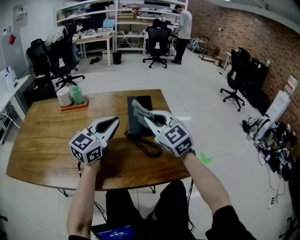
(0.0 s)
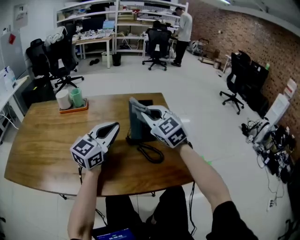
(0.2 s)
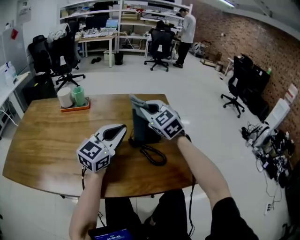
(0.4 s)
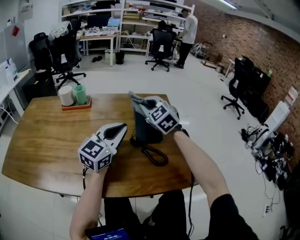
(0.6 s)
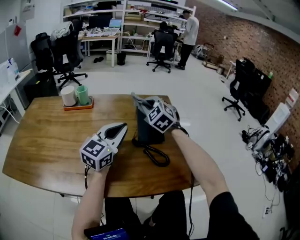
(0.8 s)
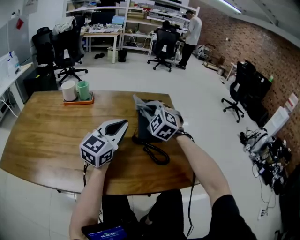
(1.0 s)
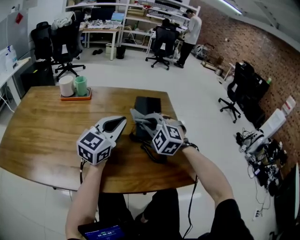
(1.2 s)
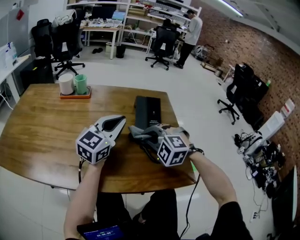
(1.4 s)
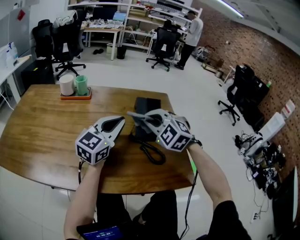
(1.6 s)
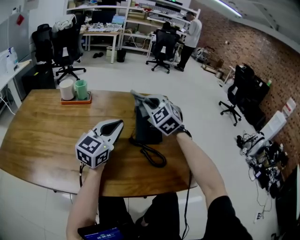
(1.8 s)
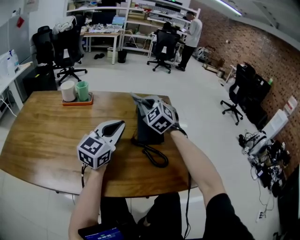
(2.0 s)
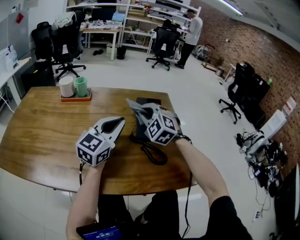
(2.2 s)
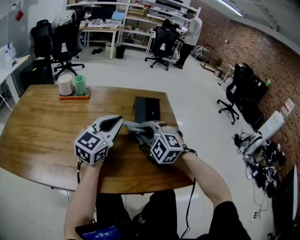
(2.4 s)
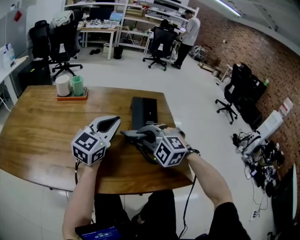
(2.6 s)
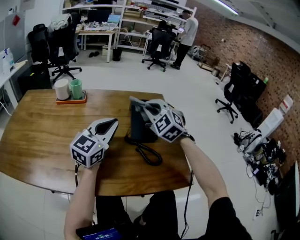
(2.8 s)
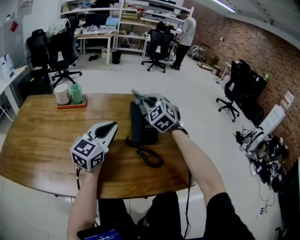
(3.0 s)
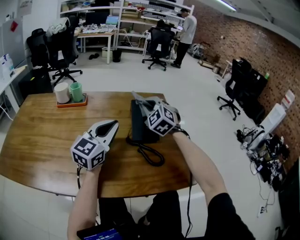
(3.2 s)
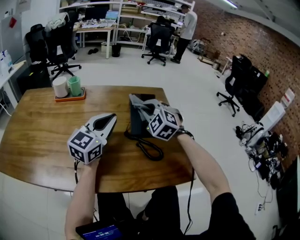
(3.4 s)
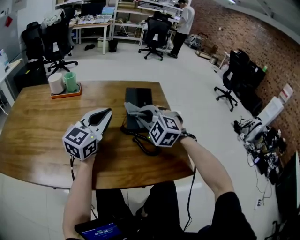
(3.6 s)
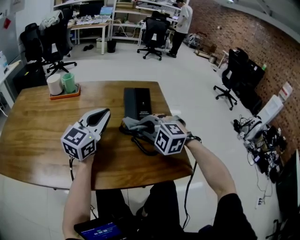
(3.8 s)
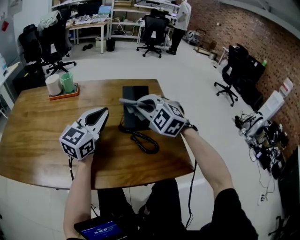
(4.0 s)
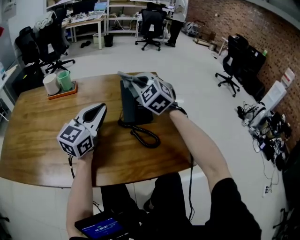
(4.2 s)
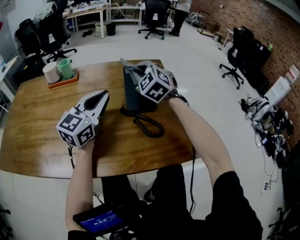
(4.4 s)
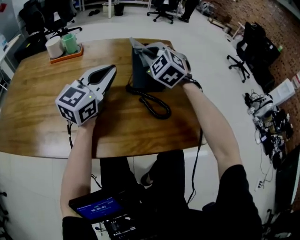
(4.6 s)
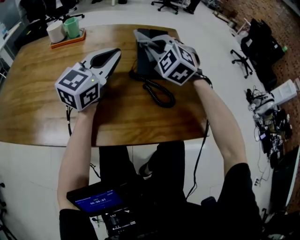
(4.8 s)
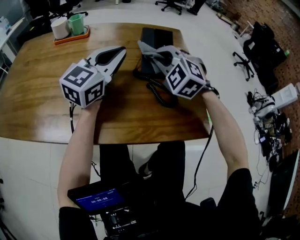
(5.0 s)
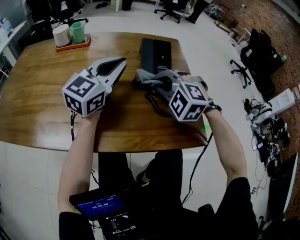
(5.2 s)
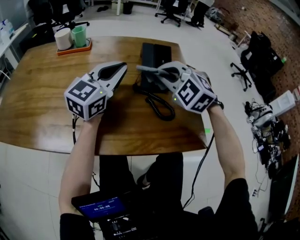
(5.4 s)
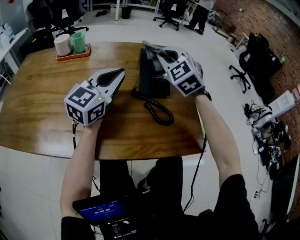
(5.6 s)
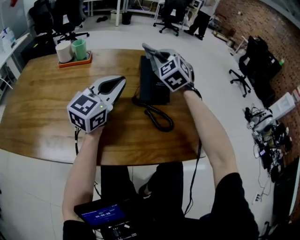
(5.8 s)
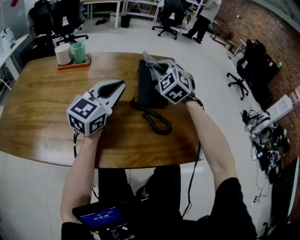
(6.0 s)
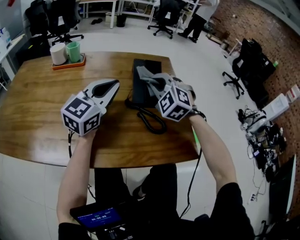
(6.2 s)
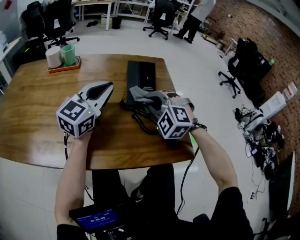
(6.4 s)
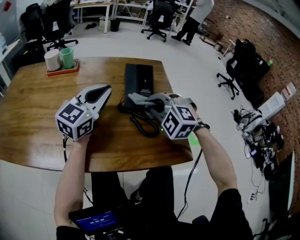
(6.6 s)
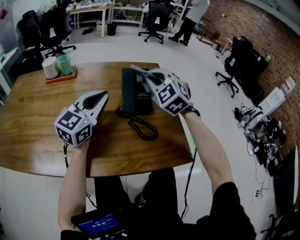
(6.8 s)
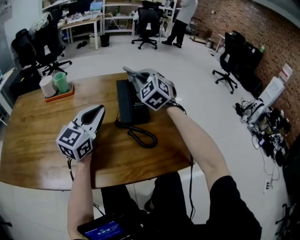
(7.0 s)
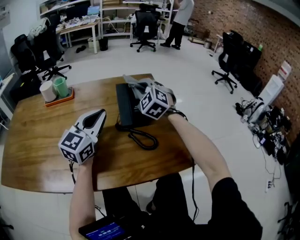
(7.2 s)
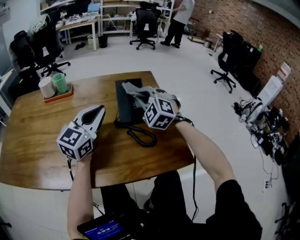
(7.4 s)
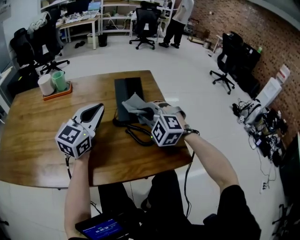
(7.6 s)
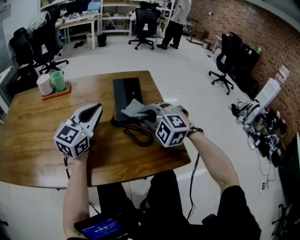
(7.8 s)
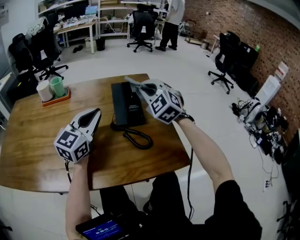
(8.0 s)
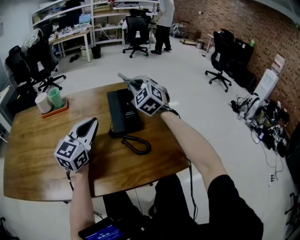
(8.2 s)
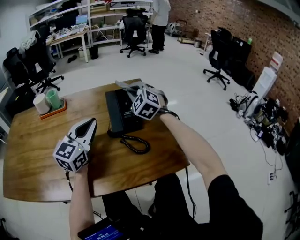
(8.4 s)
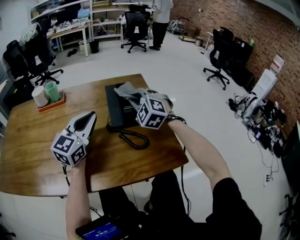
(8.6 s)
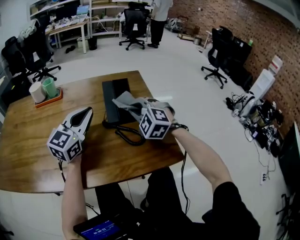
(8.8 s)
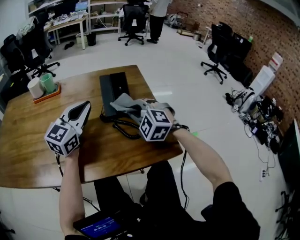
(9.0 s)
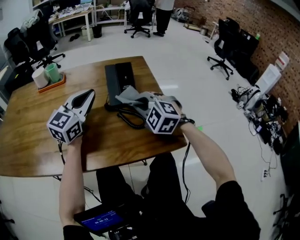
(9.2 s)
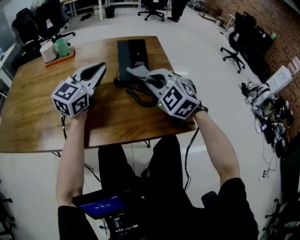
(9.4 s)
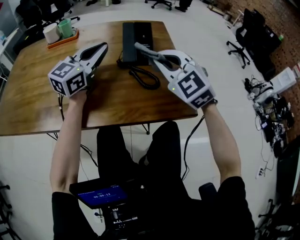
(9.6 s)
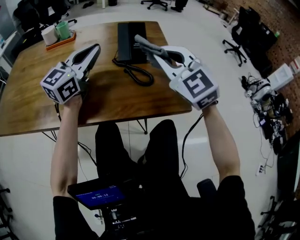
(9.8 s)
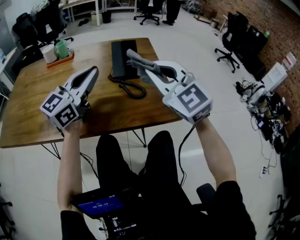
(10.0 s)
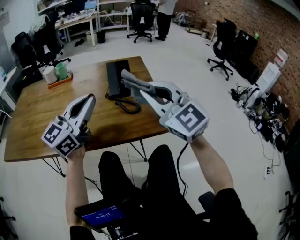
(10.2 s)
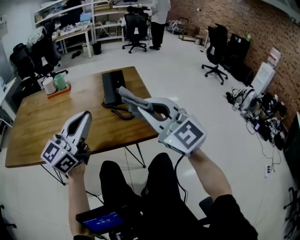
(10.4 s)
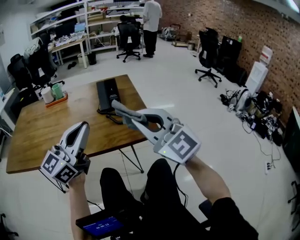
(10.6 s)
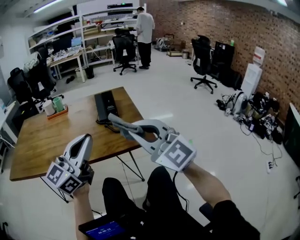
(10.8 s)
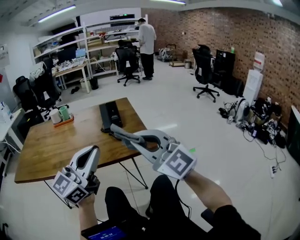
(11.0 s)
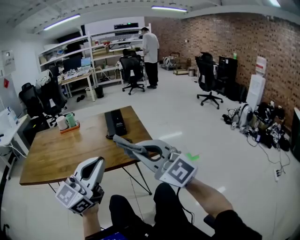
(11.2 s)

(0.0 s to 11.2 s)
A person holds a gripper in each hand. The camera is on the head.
0.0 s - 1.6 s: The right gripper swings forward and backward, about 15 cm each way, with 2 reversals, and changes its angle by approximately 40 degrees.
1.6 s - 3.2 s: The right gripper swings forward and backward, approximately 20 cm each way, with 2 reversals.
3.2 s - 4.8 s: The right gripper goes forward and backward, about 15 cm each way, reversing 2 times.
4.8 s - 6.4 s: The right gripper goes forward and backward, about 15 cm each way, reversing 2 times.
6.4 s - 8.0 s: The right gripper swings forward and backward, some 15 cm each way, with 2 reversals, and turns by approximately 30 degrees.
8.0 s - 9.6 s: The right gripper travels backward by roughly 15 cm.
9.6 s - 11.2 s: The left gripper heads backward, covering approximately 40 cm, and turns by approximately 20 degrees; the right gripper travels backward and upward by some 35 cm, and changes its angle by about 30 degrees.

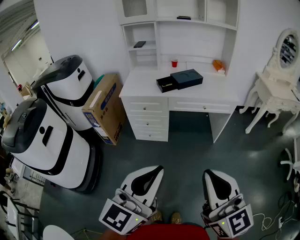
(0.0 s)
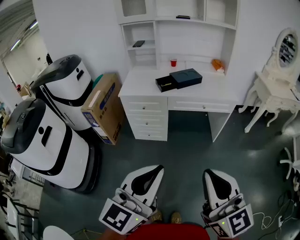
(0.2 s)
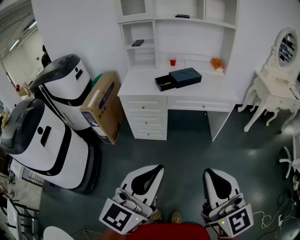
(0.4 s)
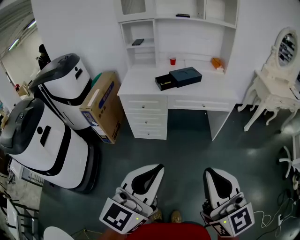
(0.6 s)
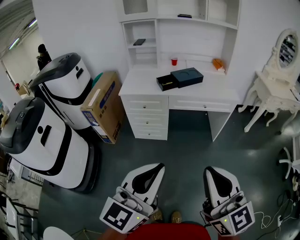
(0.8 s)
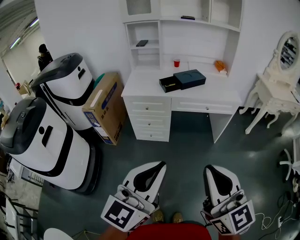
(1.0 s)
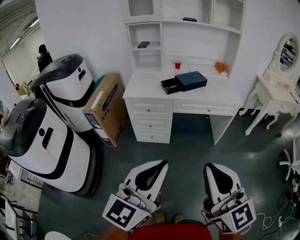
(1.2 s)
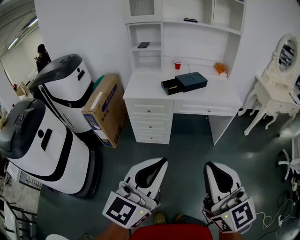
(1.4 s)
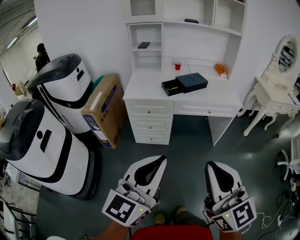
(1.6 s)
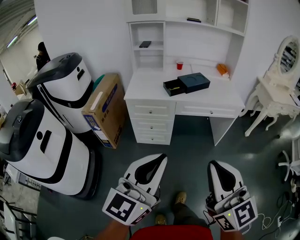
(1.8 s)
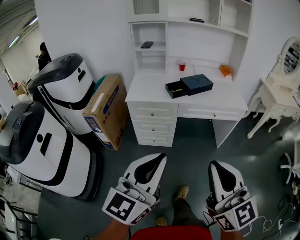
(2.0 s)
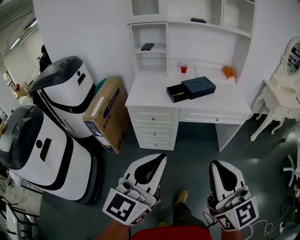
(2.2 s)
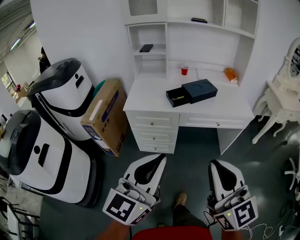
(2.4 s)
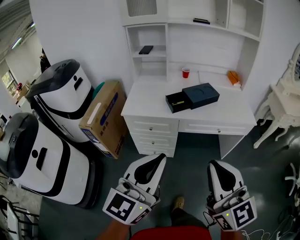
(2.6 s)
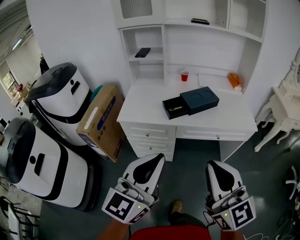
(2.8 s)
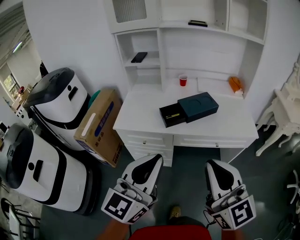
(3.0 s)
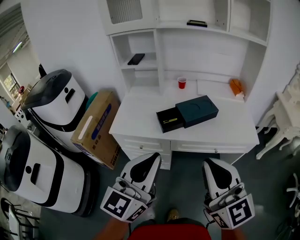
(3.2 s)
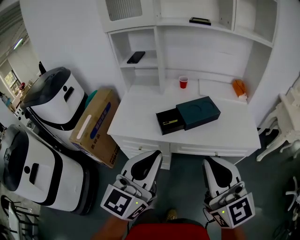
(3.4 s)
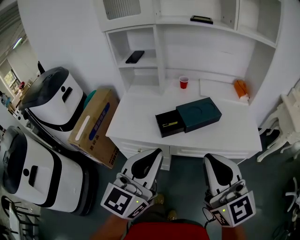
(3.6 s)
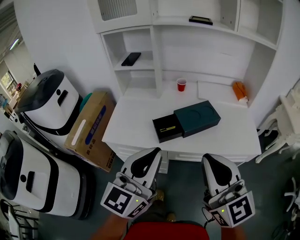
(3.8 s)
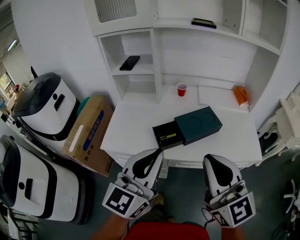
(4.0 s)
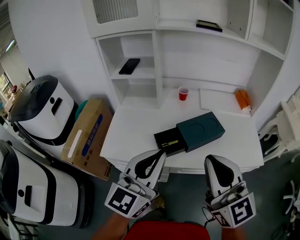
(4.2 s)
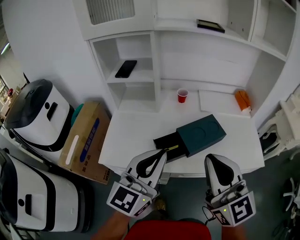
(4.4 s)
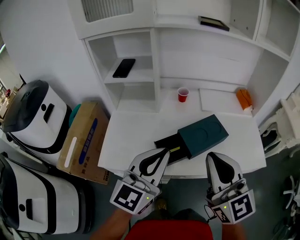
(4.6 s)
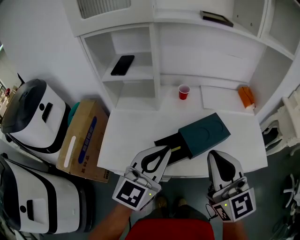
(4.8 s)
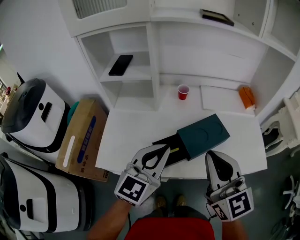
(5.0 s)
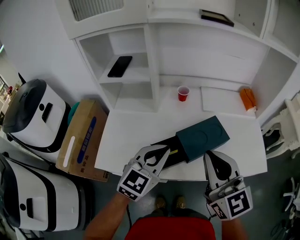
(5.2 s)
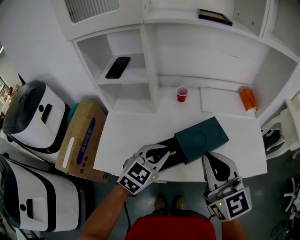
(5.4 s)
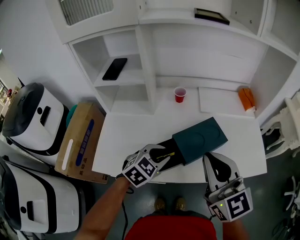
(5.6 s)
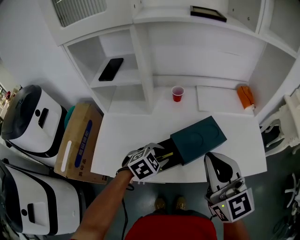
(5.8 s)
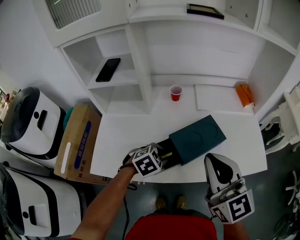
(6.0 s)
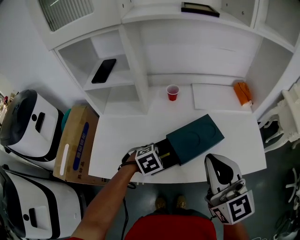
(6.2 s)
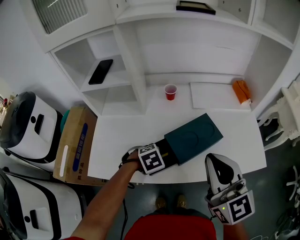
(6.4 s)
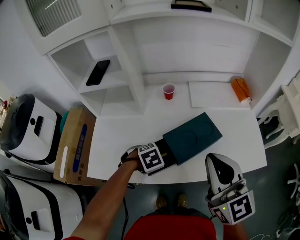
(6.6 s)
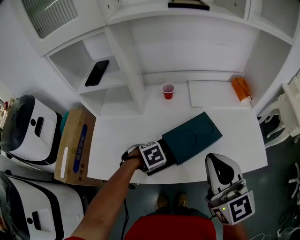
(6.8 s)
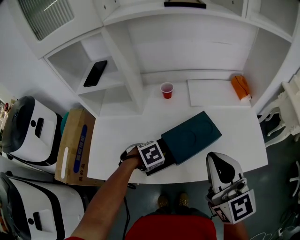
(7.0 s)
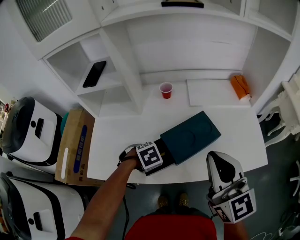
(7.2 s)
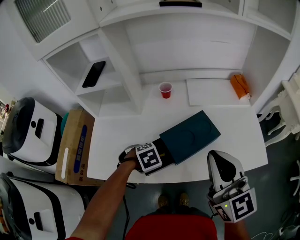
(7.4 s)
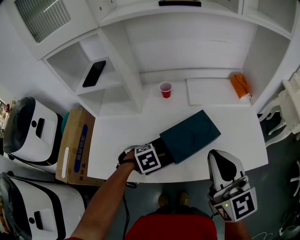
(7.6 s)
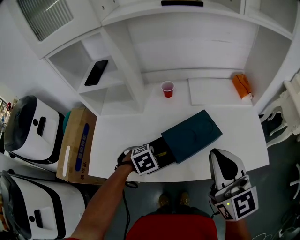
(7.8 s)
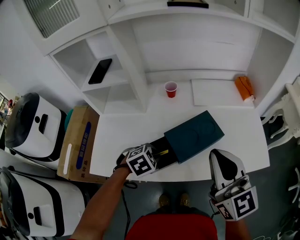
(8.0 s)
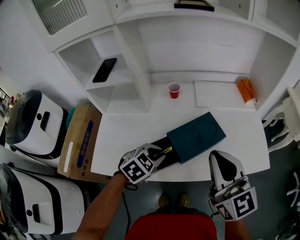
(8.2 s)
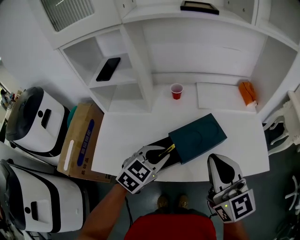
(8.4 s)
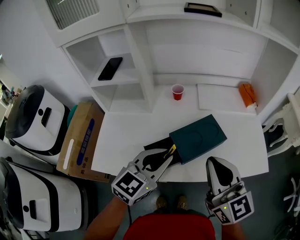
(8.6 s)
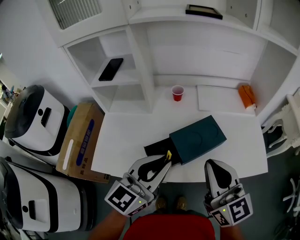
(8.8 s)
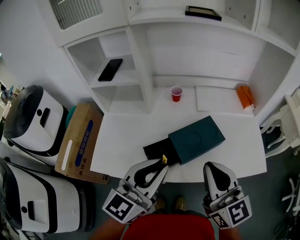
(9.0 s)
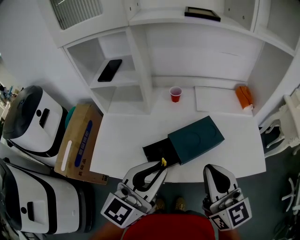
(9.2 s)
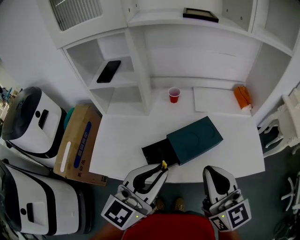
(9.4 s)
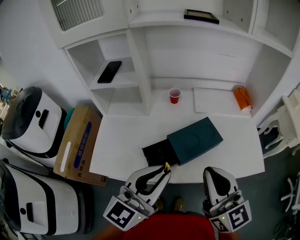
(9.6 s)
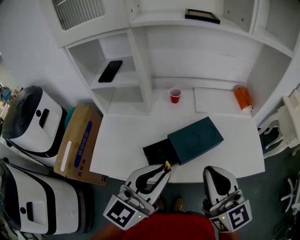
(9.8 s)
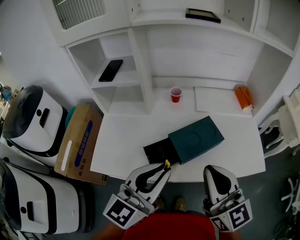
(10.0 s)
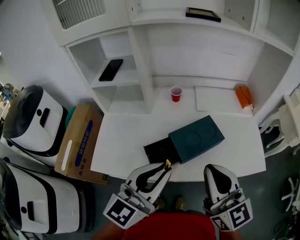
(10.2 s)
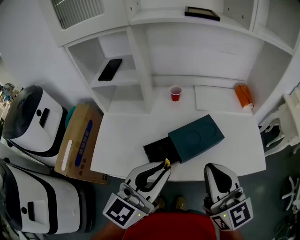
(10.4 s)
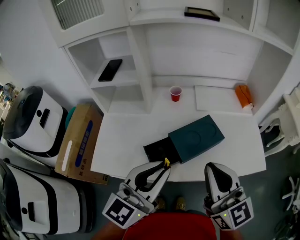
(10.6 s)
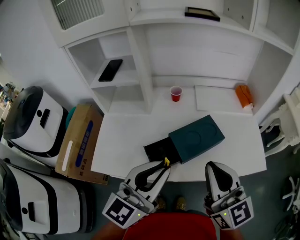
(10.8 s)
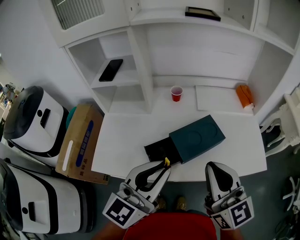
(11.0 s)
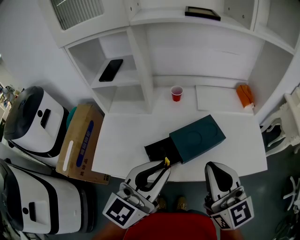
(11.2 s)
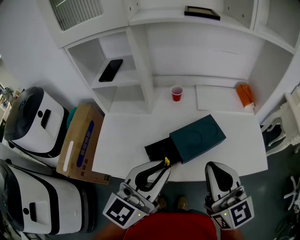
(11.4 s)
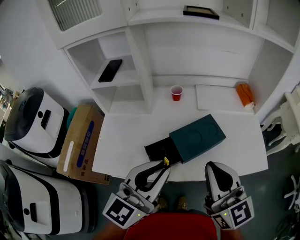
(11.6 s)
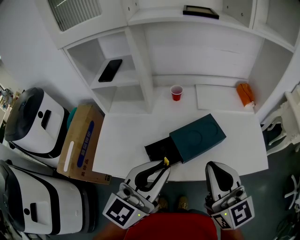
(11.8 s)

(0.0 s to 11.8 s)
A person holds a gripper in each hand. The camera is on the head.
0.0 s - 1.4 s: The grippers both shift to the left by about 5 cm.
1.4 s - 3.0 s: The grippers both shift forward by approximately 30 cm.
3.0 s - 4.4 s: The two grippers go about 25 cm forward.
4.4 s - 6.0 s: The right gripper shifts about 10 cm forward. Meanwhile the left gripper heads downward and forward, covering some 30 cm, points its fingers about 70 degrees further downward, and opens.
6.0 s - 7.4 s: The right gripper shifts by approximately 5 cm; the left gripper turns by roughly 20 degrees, and closes its fingers.
7.4 s - 8.8 s: The left gripper is displaced upward by approximately 25 cm, and tips its fingers upward by roughly 80 degrees.
8.8 s - 10.4 s: There are only small adjustments of the grippers.
10.4 s - 11.8 s: Both grippers stay about where they are.

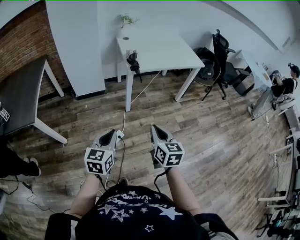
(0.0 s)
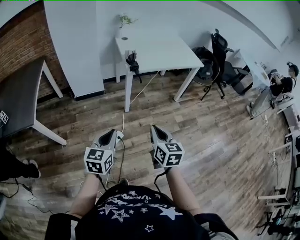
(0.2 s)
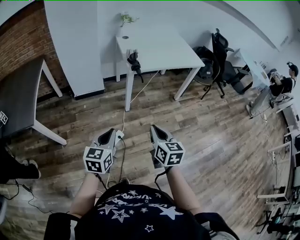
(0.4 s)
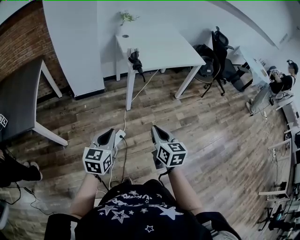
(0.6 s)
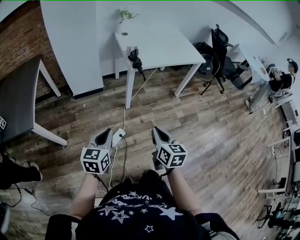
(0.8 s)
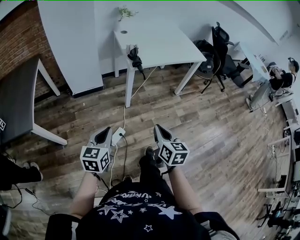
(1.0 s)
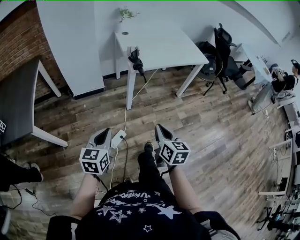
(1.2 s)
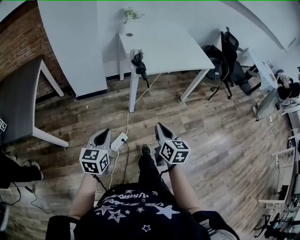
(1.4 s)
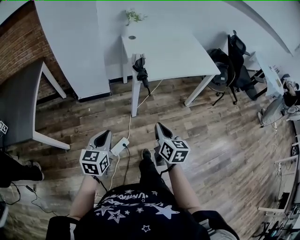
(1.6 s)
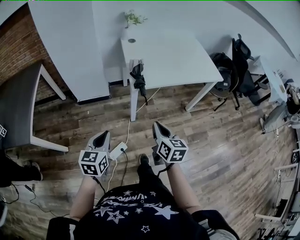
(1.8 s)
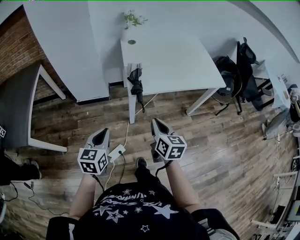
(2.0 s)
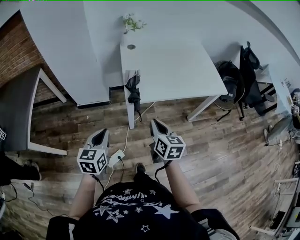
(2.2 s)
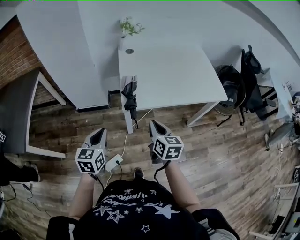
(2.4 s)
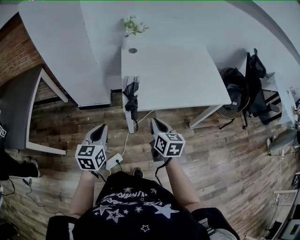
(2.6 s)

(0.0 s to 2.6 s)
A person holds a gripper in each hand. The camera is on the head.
0.0 s - 1.2 s: The right gripper moves forward, about 5 cm, while the left gripper is displaced to the left and forward by some 10 cm.
1.2 s - 2.6 s: Both grippers move forward, roughly 35 cm.
